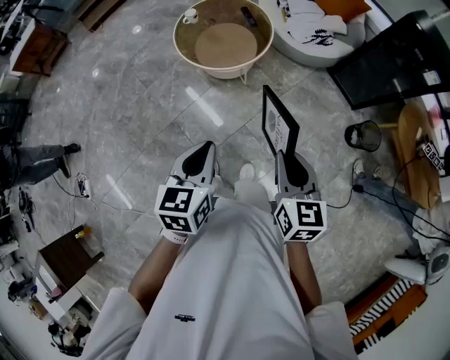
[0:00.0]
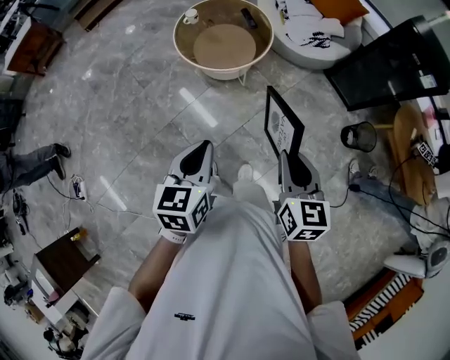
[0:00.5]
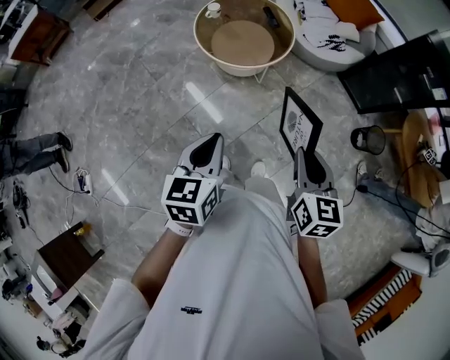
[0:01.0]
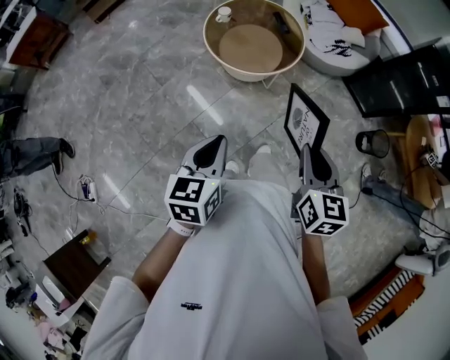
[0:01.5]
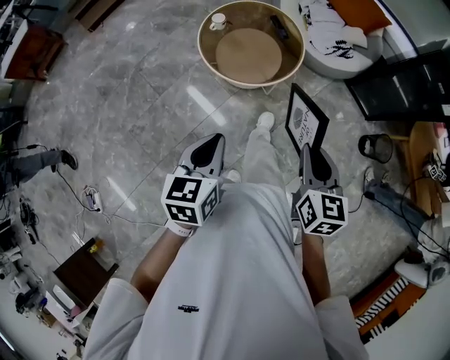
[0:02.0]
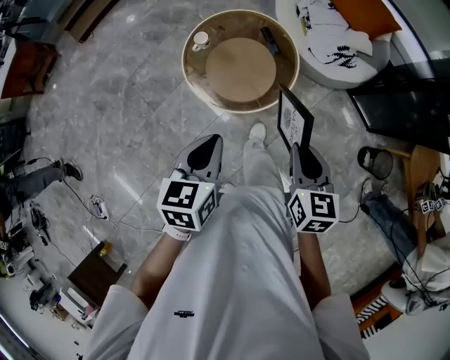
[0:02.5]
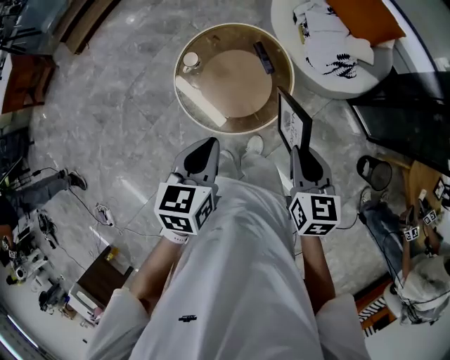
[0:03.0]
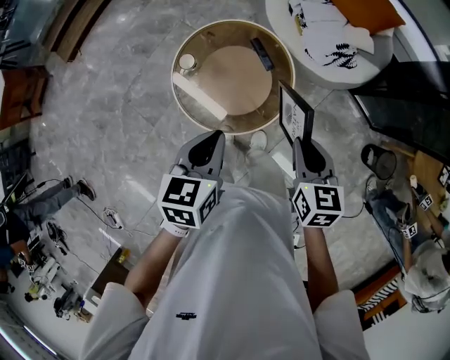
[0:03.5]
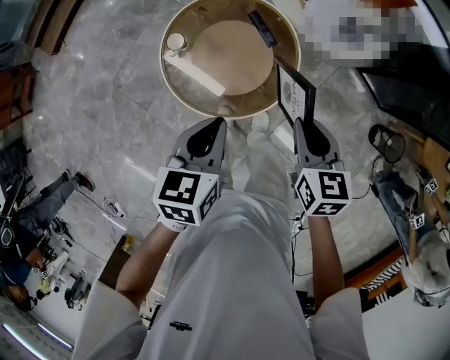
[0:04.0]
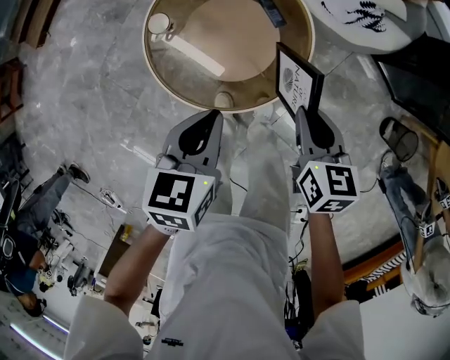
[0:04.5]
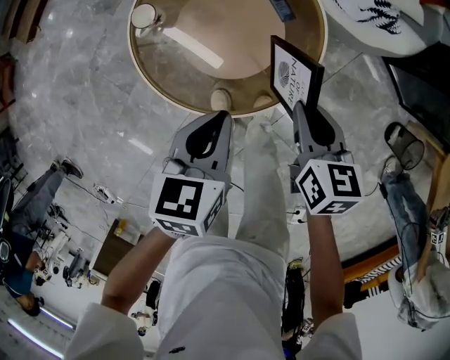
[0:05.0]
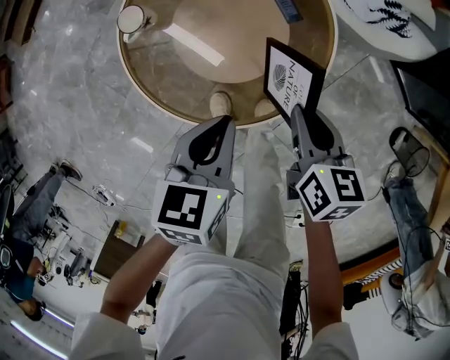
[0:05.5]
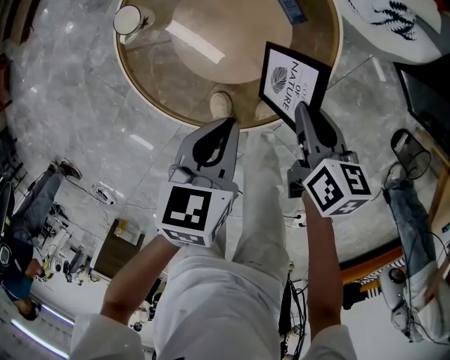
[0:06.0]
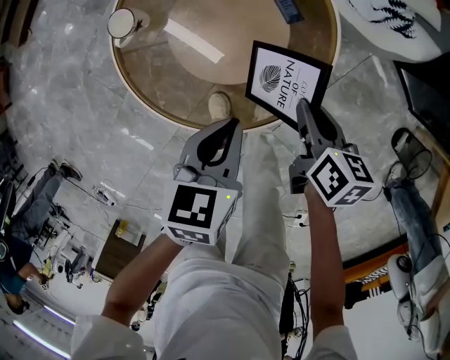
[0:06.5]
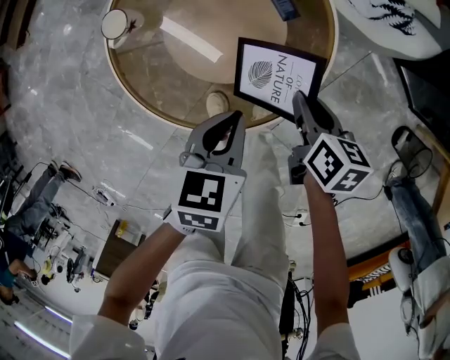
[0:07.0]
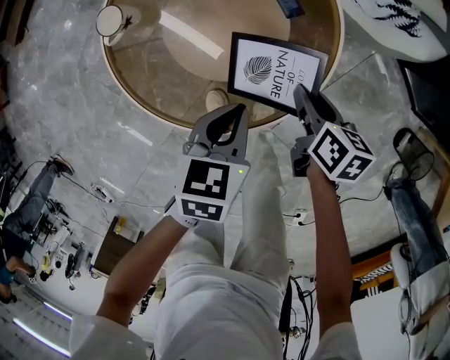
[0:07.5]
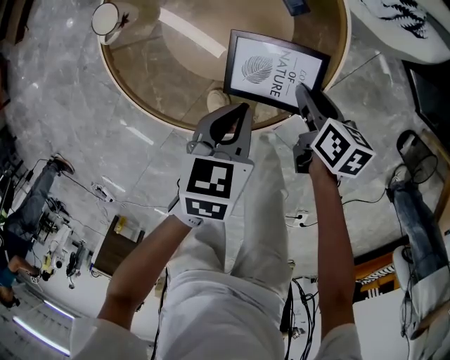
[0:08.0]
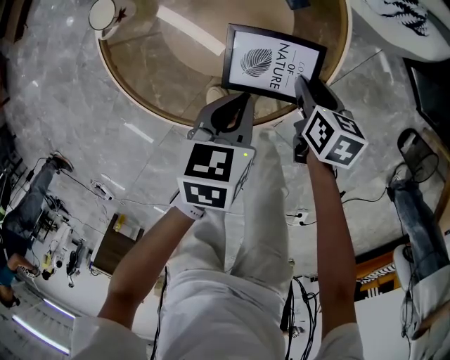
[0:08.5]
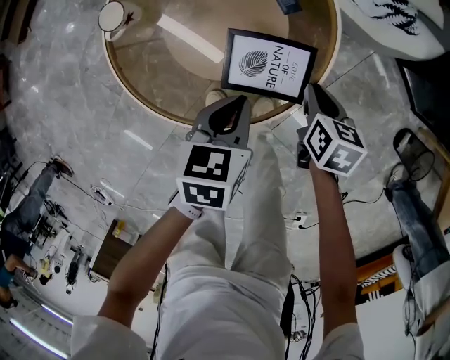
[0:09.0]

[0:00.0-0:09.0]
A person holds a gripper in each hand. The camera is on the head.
0:00.0 to 0:02.0: Both grippers move to the left and forward, some 25 cm.
0:02.0 to 0:04.5: The two grippers travel together, forward, about 40 cm. Both grippers travel together downward, about 25 cm.
0:04.5 to 0:07.0: Both grippers travel together downward, approximately 20 cm. The right gripper swivels approximately 20 degrees.
0:07.0 to 0:09.0: The right gripper shifts by roughly 5 cm, and opens and closes again.

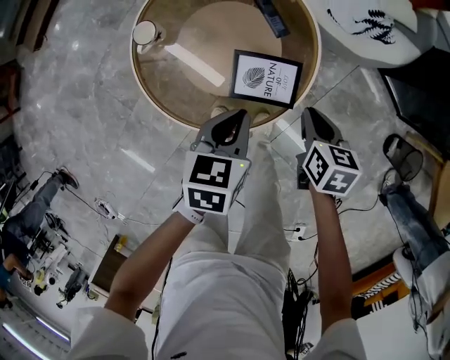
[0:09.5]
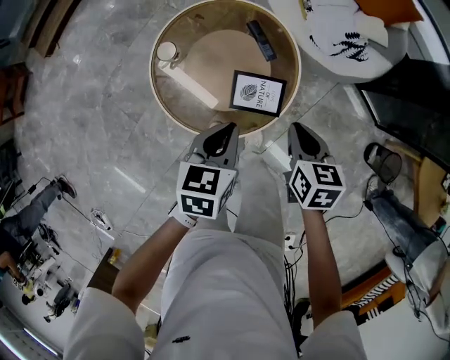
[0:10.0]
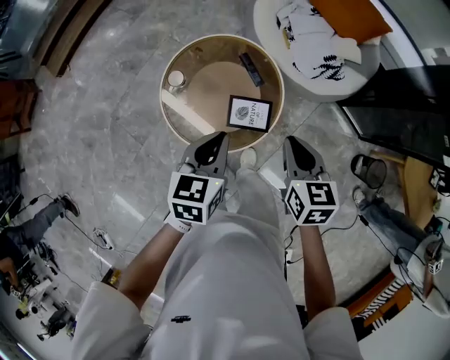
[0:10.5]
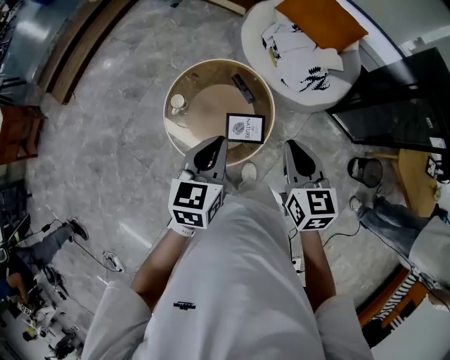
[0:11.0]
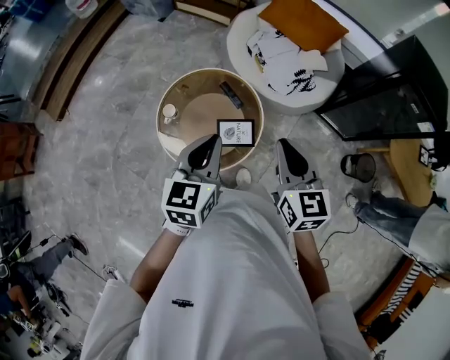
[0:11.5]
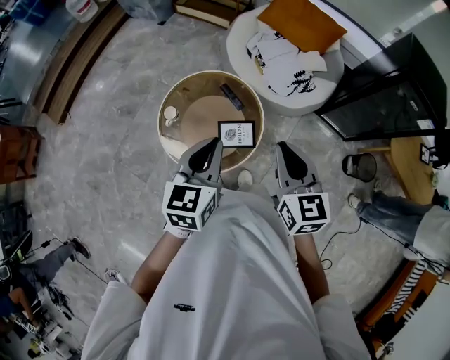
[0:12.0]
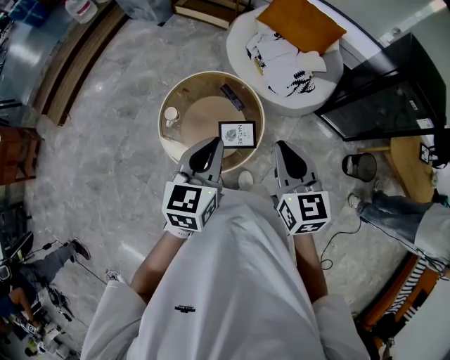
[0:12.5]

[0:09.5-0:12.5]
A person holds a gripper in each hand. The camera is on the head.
0:09.5 to 0:11.0: Both grippers move upward, about 40 cm. The left gripper swivels roughly 20 degrees; the right gripper swivels approximately 30 degrees.
0:11.0 to 0:12.5: The right gripper moves upward, roughly 5 cm.

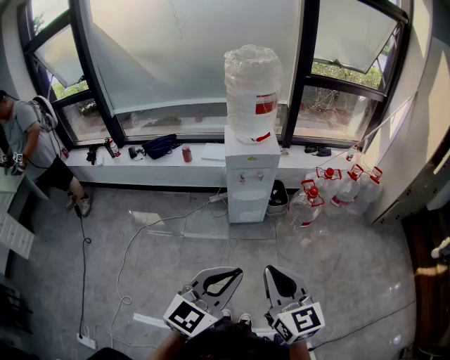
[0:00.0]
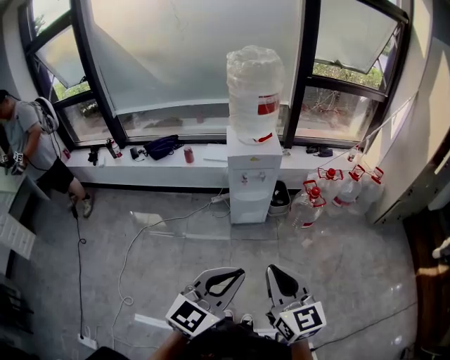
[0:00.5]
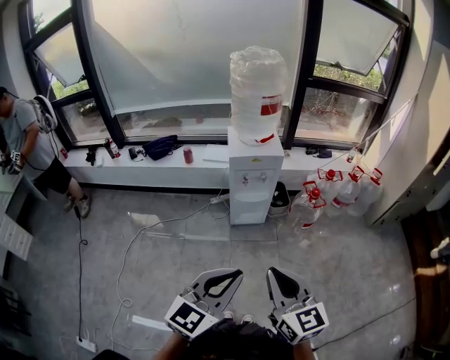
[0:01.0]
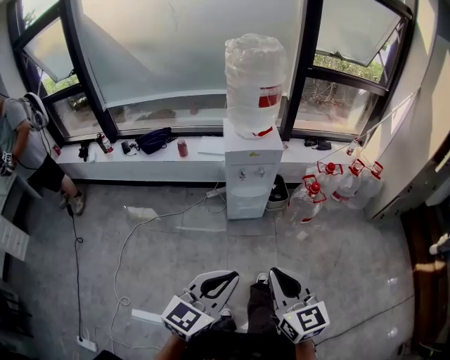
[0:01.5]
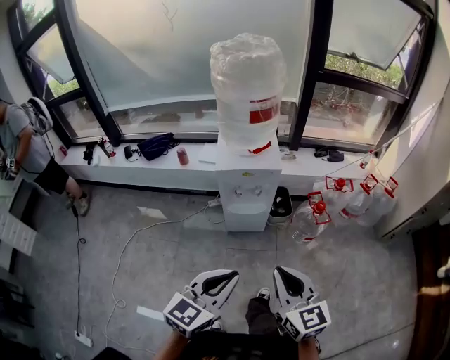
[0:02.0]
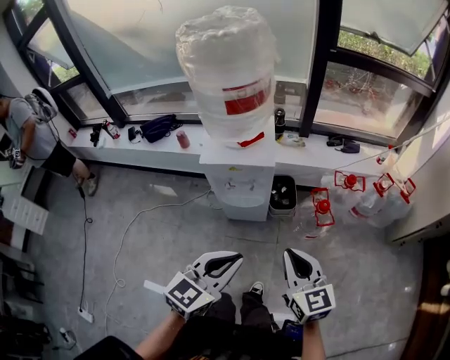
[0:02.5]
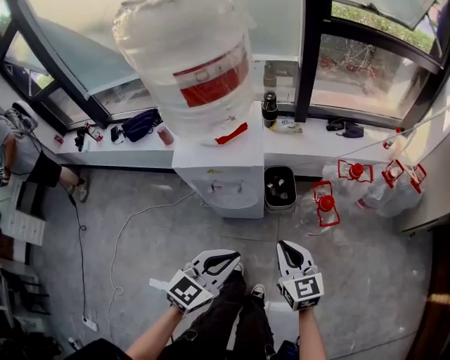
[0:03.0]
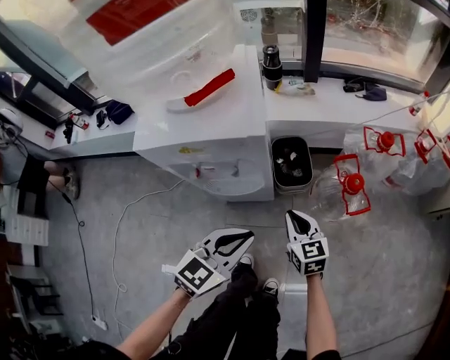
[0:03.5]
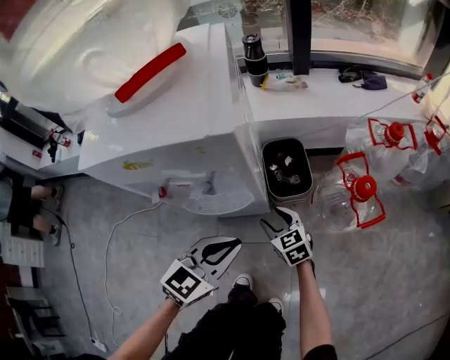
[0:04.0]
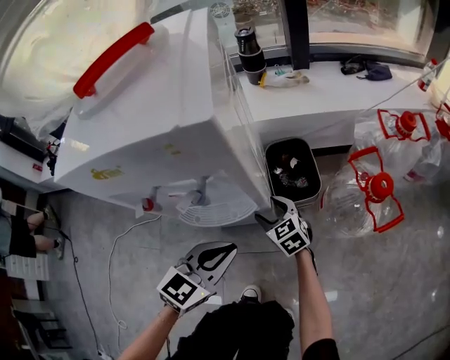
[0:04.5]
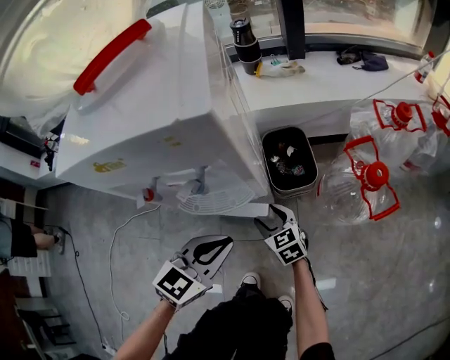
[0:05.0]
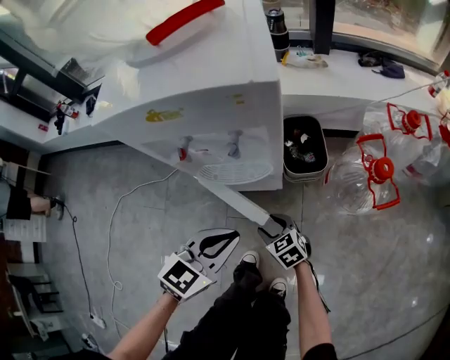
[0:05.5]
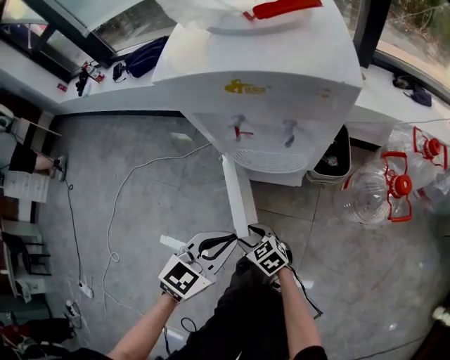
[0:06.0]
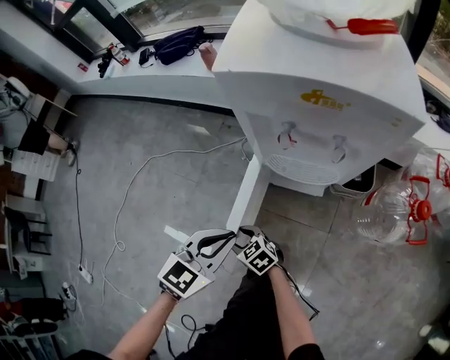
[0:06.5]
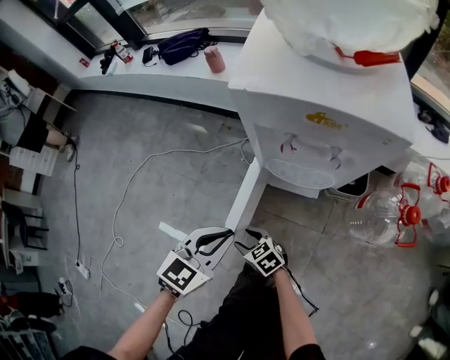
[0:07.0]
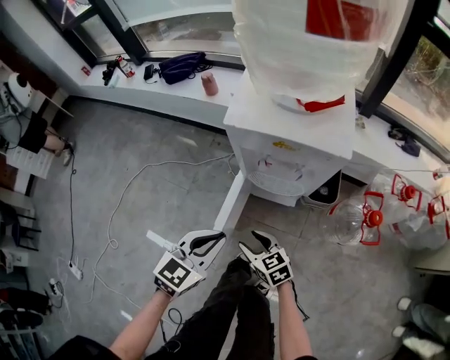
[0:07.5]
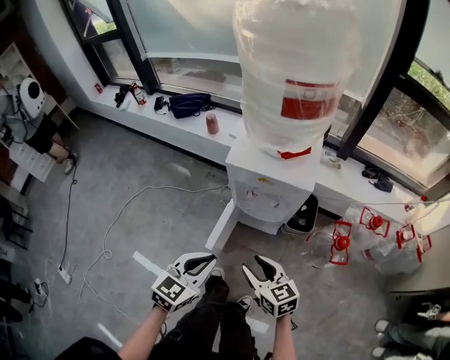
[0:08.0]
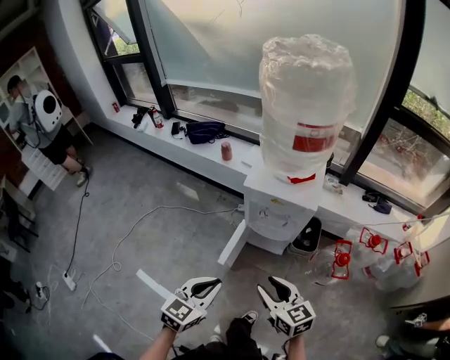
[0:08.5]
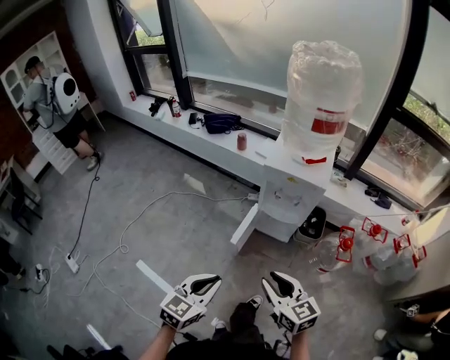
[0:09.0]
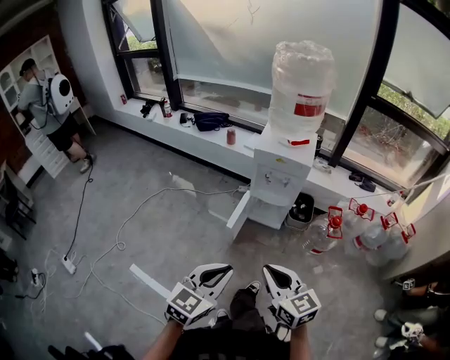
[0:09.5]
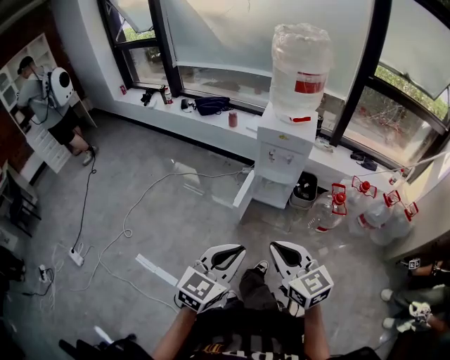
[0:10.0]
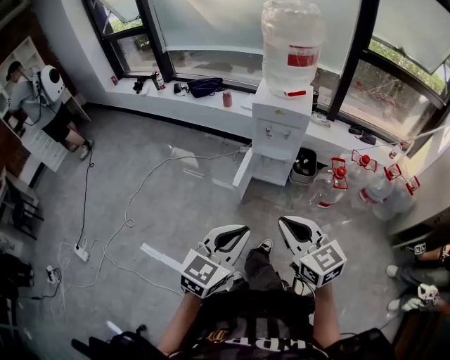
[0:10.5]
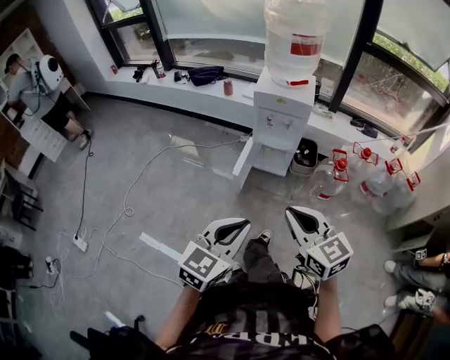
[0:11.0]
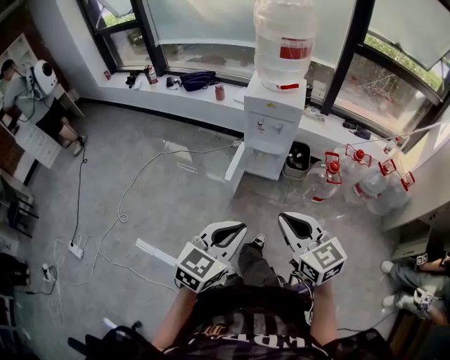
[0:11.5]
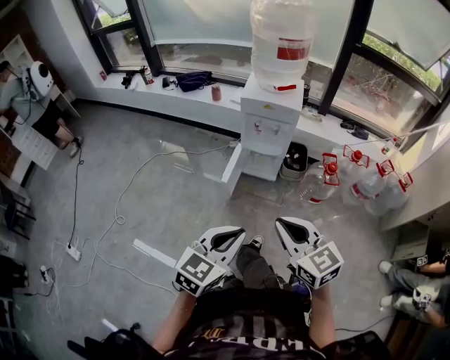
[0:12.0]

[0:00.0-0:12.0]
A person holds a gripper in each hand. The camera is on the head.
0:00.0 to 0:02.0: The right gripper moves forward, approximately 20 cm. Meanwhile the left gripper heads forward and downward, covering approximately 20 cm.
0:02.0 to 0:04.0: The grippers both shift downward and forward by approximately 70 cm. The right gripper turns by roughly 20 degrees, and opens up.
0:04.0 to 0:06.0: The right gripper changes place by some 30 cm, and rotates roughly 30 degrees. Meanwhile the left gripper ends up some 15 cm from where it was.
0:06.0 to 0:08.0: The right gripper travels upward by roughly 40 cm, while the left gripper shifts approximately 25 cm upward.
0:08.0 to 0:10.0: The two grippers go roughly 40 cm backward and upward. The right gripper closes.
0:10.0 to 0:12.0: The grippers stay close to where they were, moving slightly.

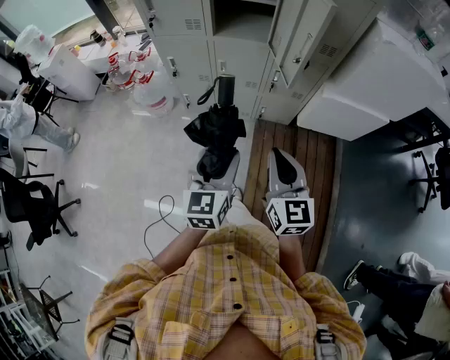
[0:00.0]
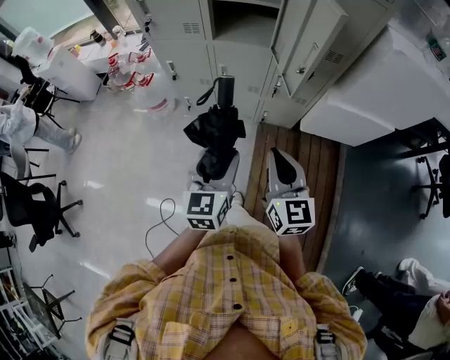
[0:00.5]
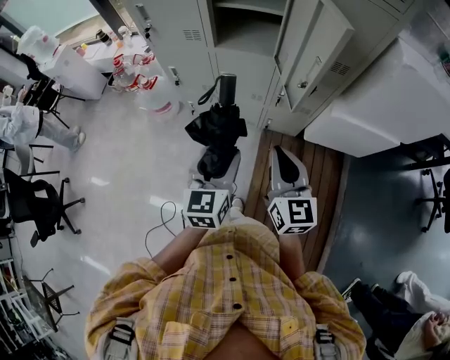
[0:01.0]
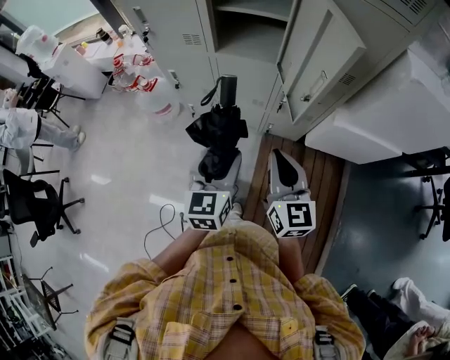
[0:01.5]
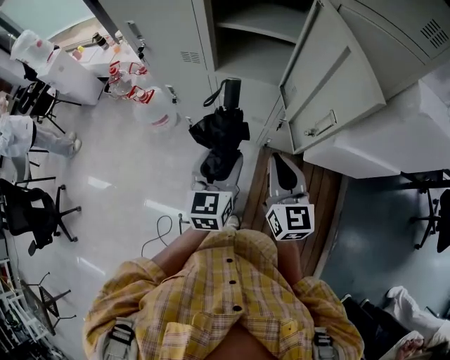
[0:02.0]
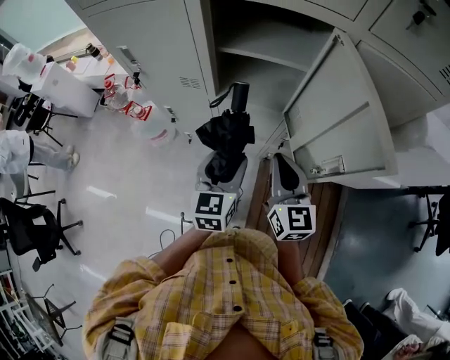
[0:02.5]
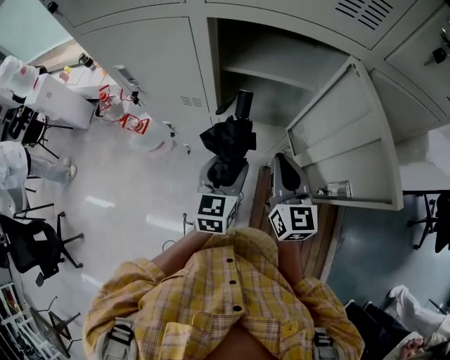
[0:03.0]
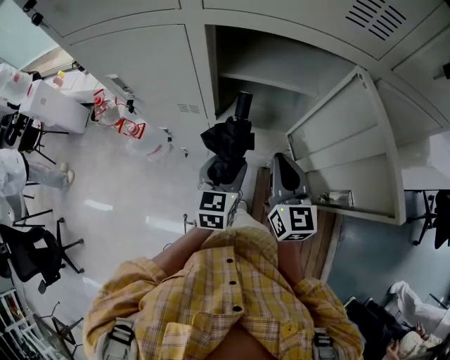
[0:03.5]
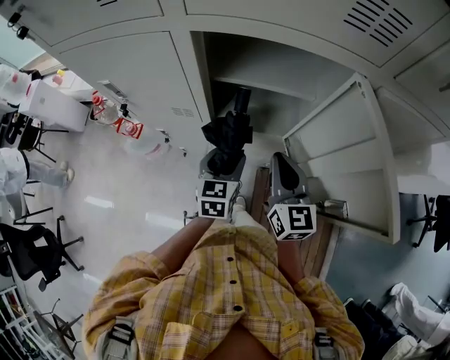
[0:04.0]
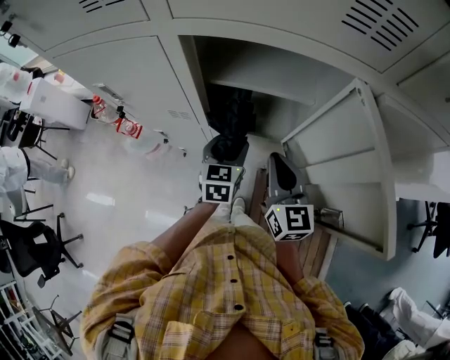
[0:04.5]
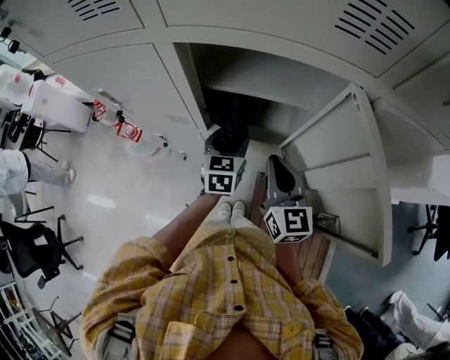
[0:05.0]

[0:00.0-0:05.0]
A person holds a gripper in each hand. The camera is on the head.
0:00.0 to 0:02.5: The grippers both shift forward by approximately 30 cm.
0:02.5 to 0:05.0: The grippers both shift forward by approximately 20 cm.
